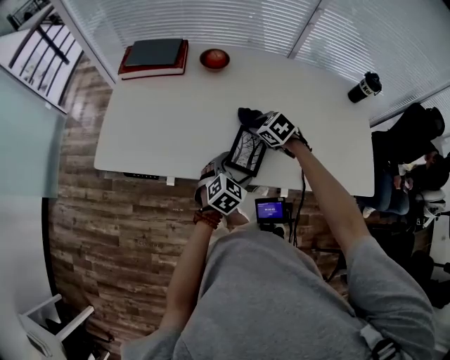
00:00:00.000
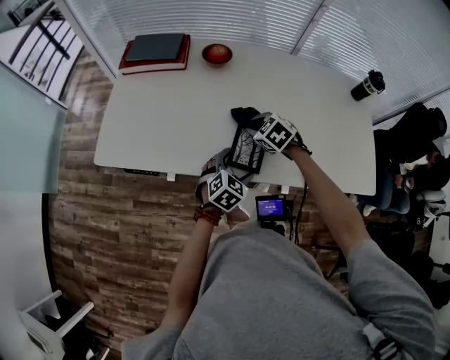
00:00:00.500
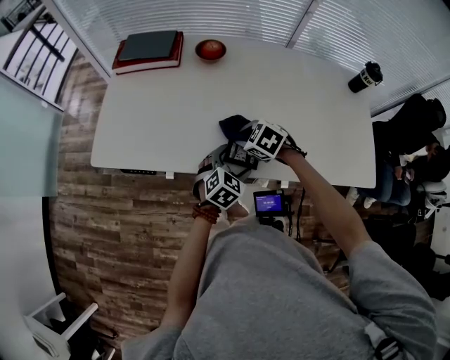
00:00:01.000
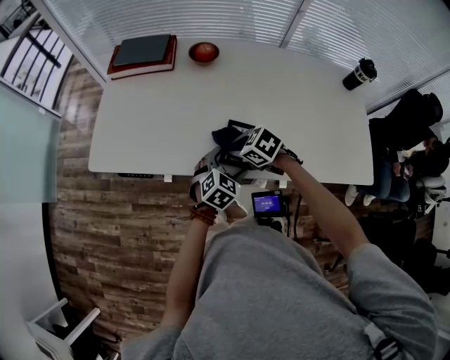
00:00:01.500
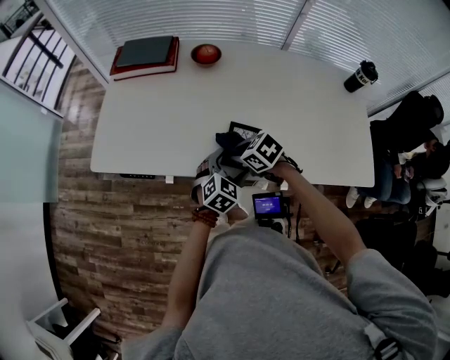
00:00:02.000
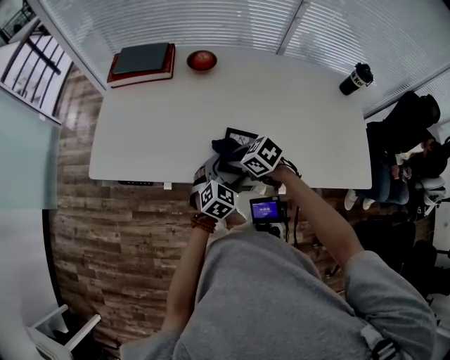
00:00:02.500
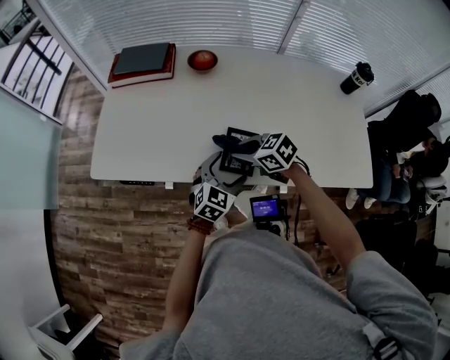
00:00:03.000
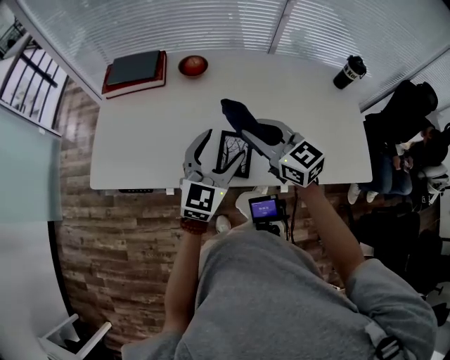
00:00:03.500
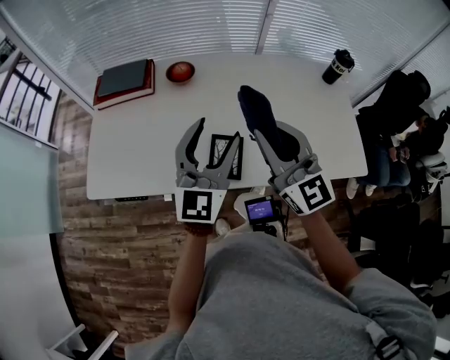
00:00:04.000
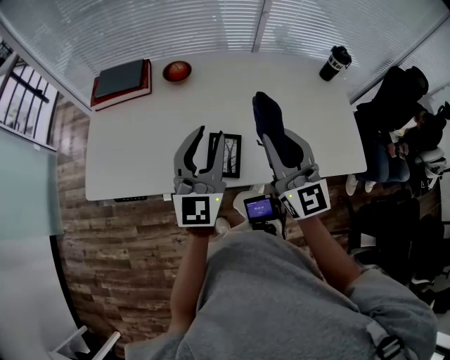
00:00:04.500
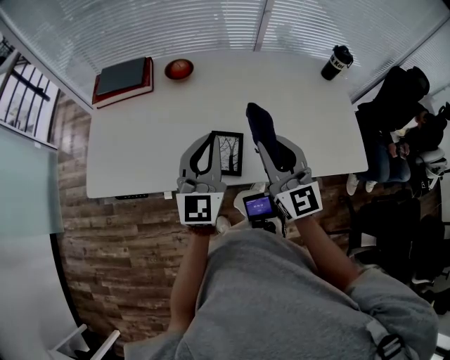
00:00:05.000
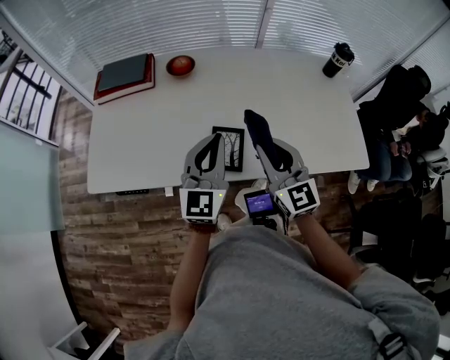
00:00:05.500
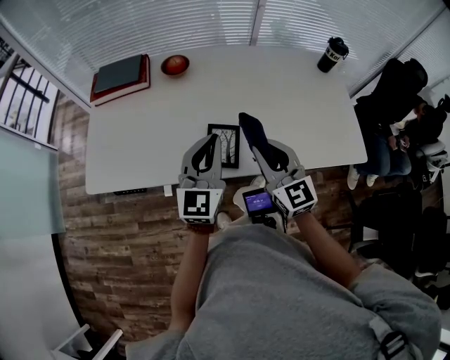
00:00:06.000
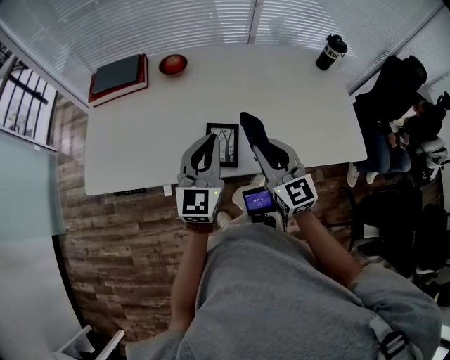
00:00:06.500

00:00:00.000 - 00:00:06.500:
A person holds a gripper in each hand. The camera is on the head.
00:00:00.000 - 00:00:02.000: The right gripper moves backward and to the left, approximately 15 cm.
00:00:02.000 - 00:00:04.500: The right gripper heads upward and to the right, covering approximately 30 cm, and tips its fingers upward by roughly 60 degrees, while the left gripper is displaced upward by about 30 cm, points its fingers roughly 50 degrees further upward, and closes up.
00:00:04.500 - 00:00:06.500: Both grippers move downward, approximately 10 cm.

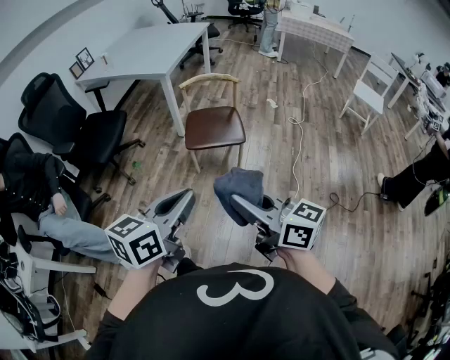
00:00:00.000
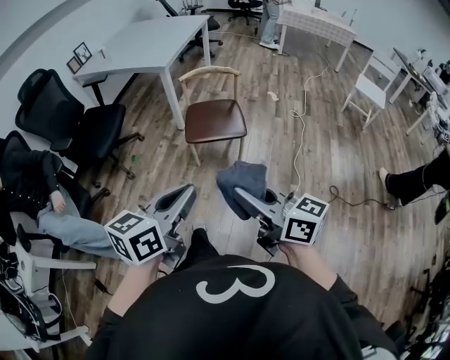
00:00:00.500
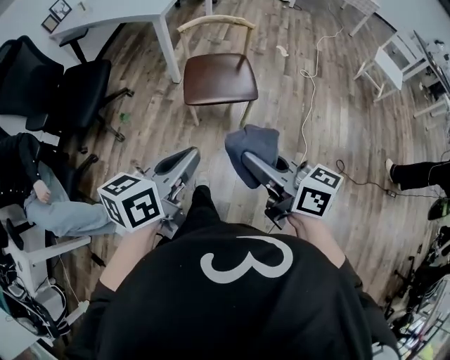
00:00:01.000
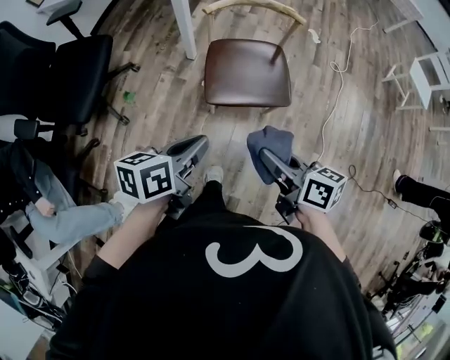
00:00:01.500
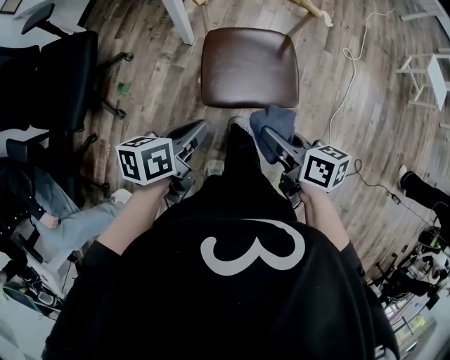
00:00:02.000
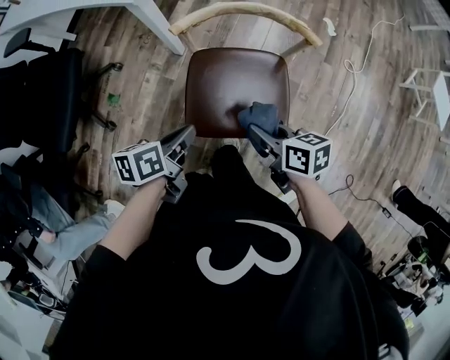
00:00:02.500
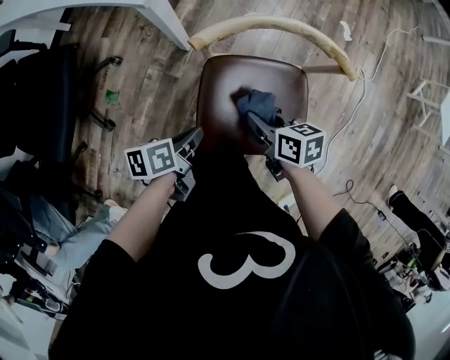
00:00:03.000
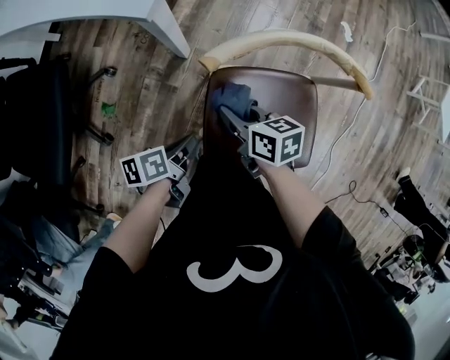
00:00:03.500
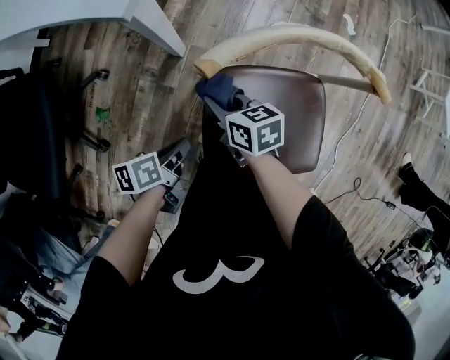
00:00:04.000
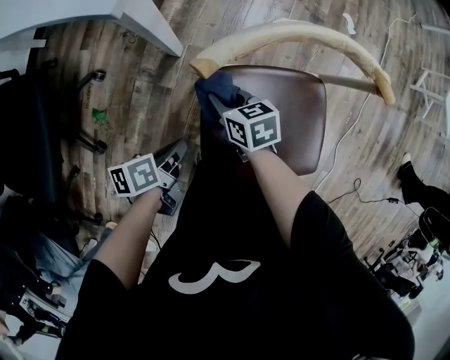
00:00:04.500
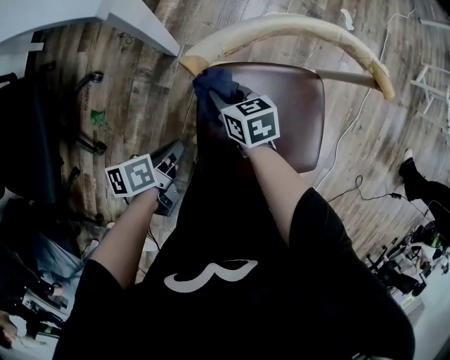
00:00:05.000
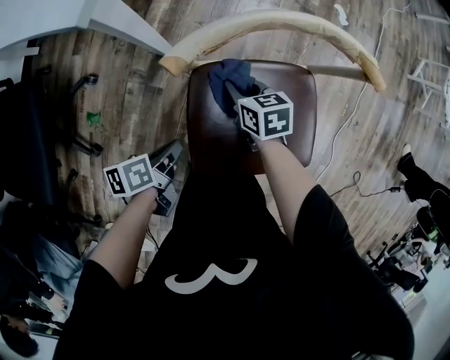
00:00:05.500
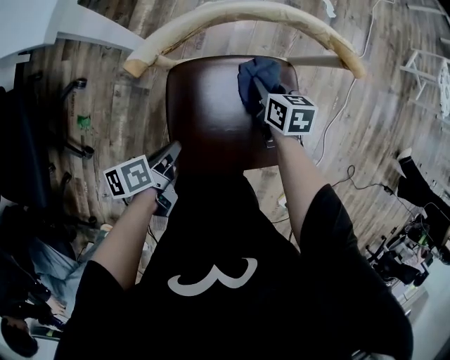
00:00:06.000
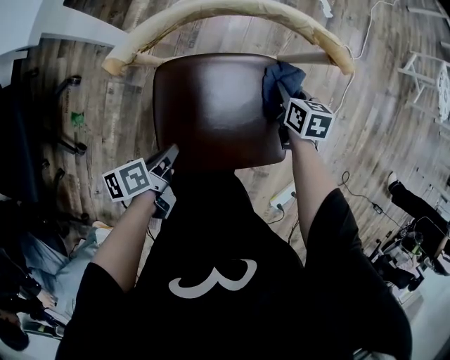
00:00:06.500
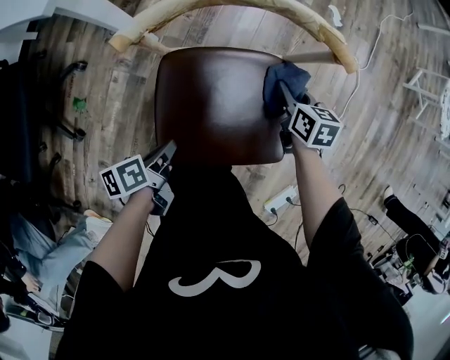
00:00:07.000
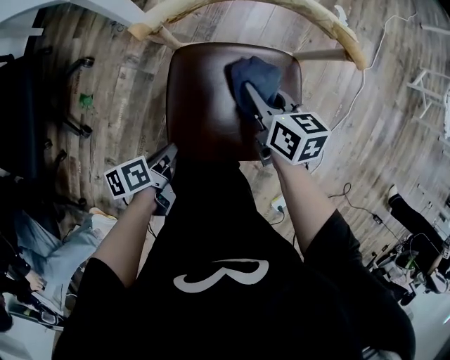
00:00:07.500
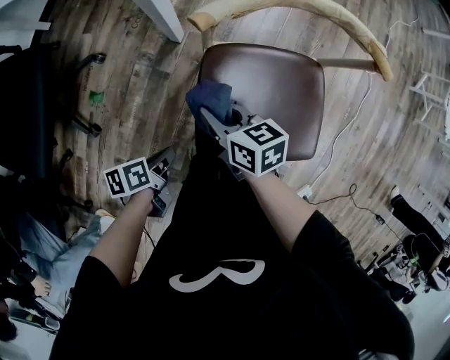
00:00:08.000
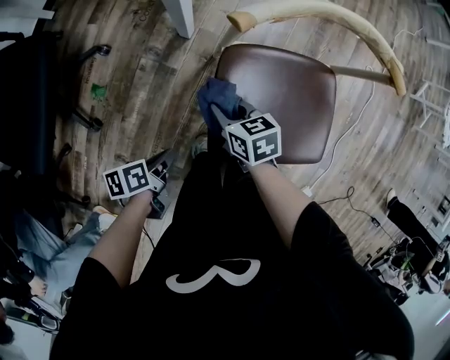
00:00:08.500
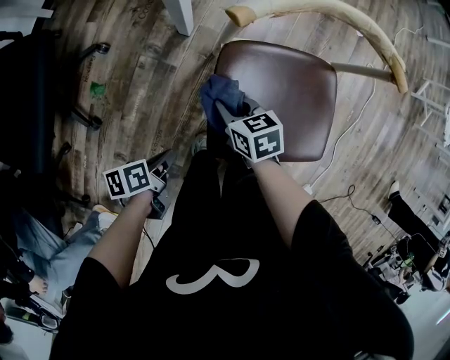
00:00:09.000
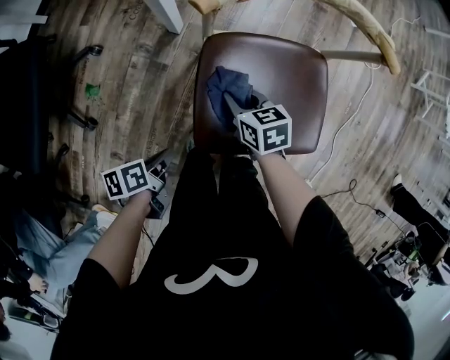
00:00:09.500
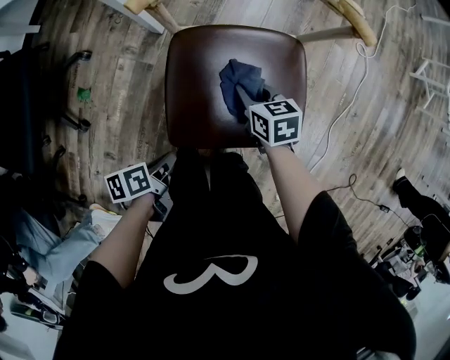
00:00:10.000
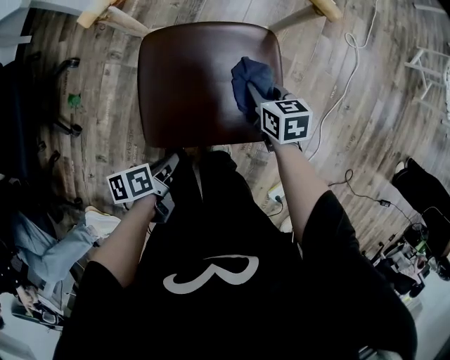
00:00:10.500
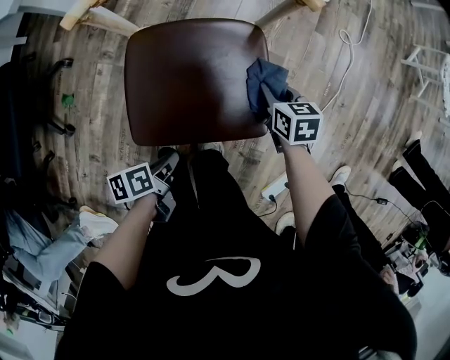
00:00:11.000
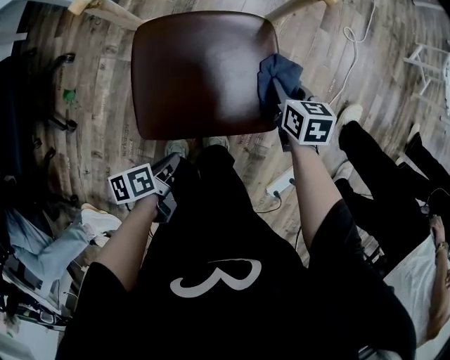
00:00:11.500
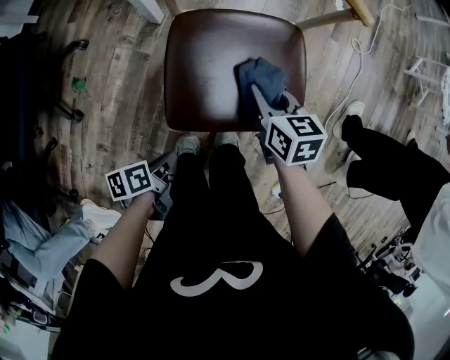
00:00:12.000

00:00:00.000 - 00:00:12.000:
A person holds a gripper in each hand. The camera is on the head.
00:00:00.000 - 00:00:02.000: The right gripper changes place by approximately 50 cm, and points its fingers approximately 30 degrees further downward.
00:00:02.000 - 00:00:04.000: The right gripper ends up about 40 cm from where it was.
00:00:04.000 - 00:00:06.000: The right gripper moves approximately 25 cm, and rotates approximately 20 degrees.
00:00:06.000 - 00:00:08.000: The right gripper moves some 25 cm, and changes its angle by about 30 degrees.
00:00:08.000 - 00:00:10.000: The right gripper moves approximately 20 cm.
00:00:10.000 - 00:00:12.000: The right gripper travels upward by approximately 5 cm.

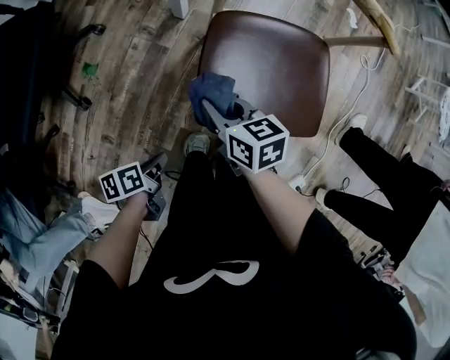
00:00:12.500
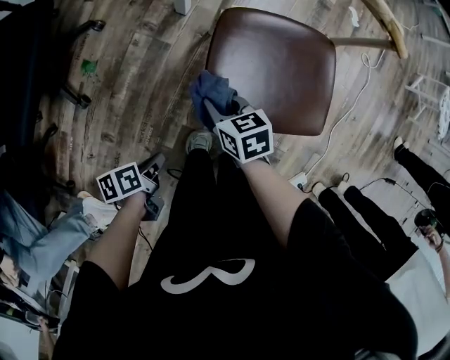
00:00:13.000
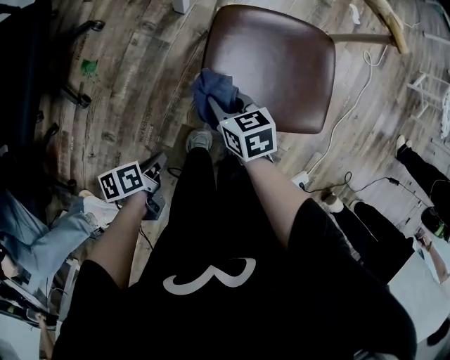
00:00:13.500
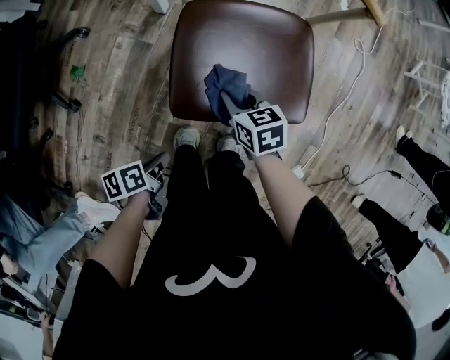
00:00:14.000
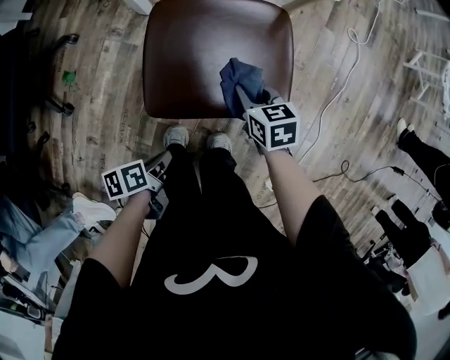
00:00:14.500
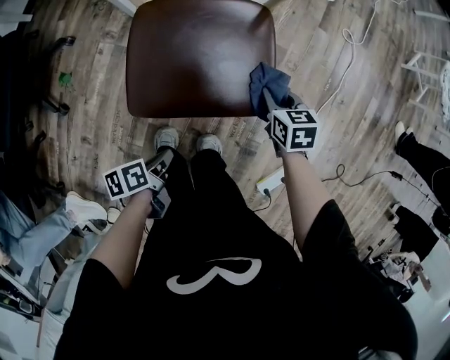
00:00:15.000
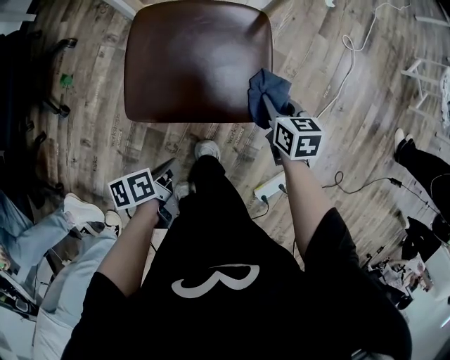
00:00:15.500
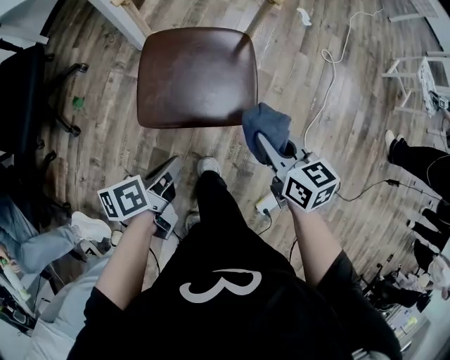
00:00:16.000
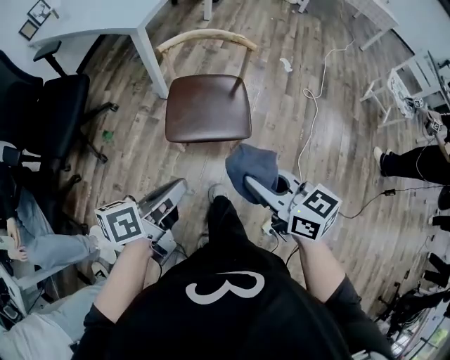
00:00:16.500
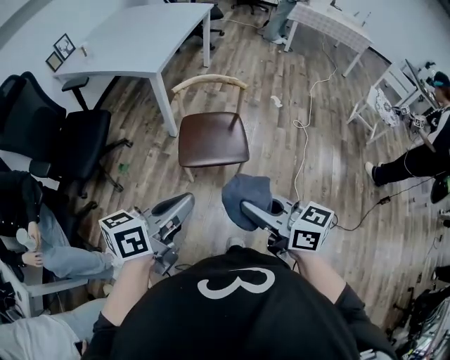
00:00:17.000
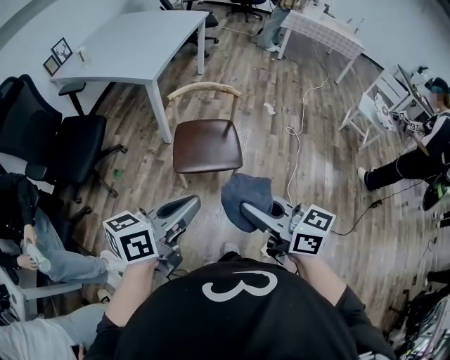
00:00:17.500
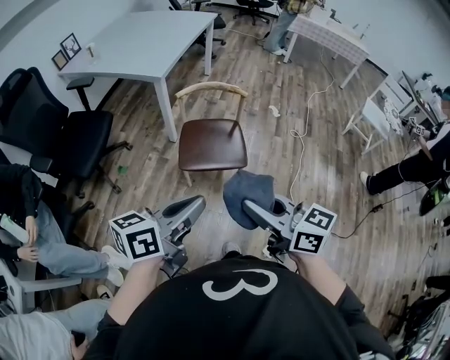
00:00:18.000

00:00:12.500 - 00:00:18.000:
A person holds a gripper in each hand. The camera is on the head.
00:00:12.500 - 00:00:14.500: The right gripper changes place by roughly 25 cm.
00:00:14.500 - 00:00:16.000: The right gripper moves upward, about 20 cm.
00:00:16.000 - 00:00:18.000: The right gripper goes roughly 35 cm upward, and rotates approximately 30 degrees.

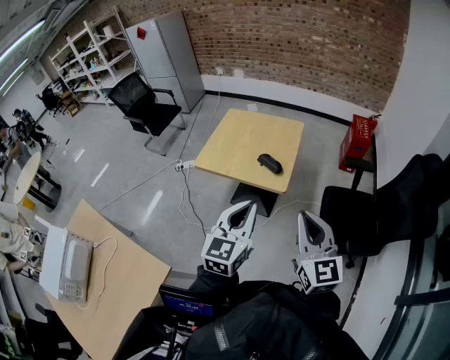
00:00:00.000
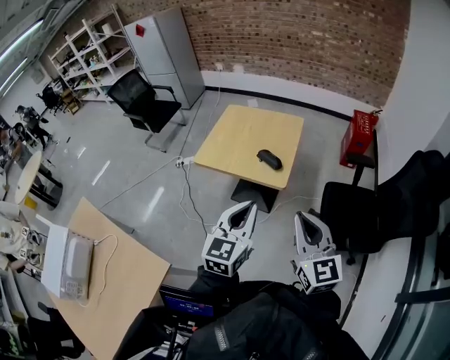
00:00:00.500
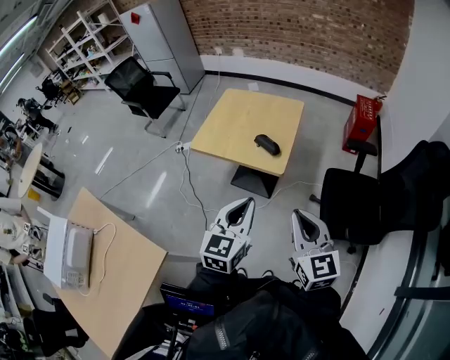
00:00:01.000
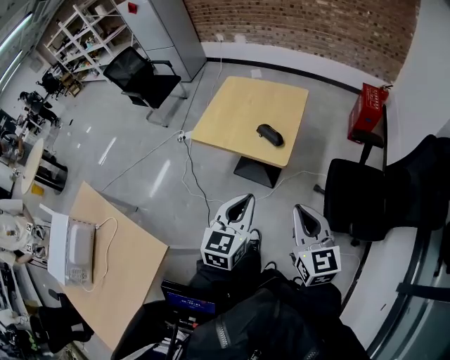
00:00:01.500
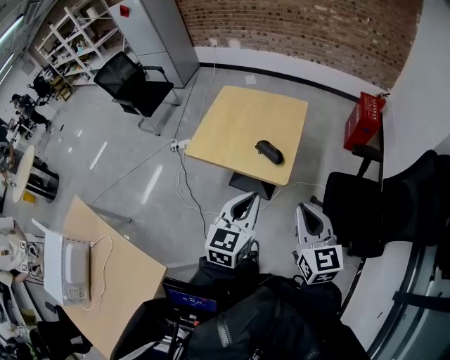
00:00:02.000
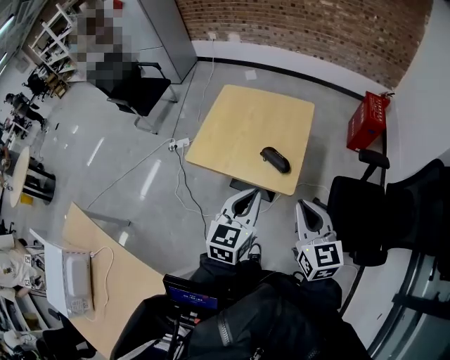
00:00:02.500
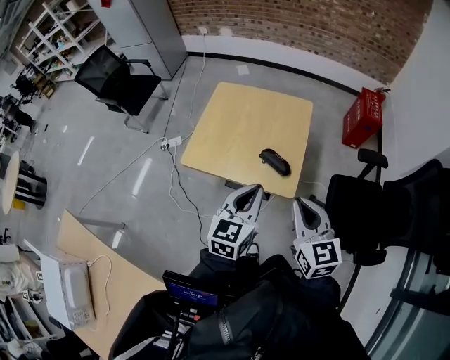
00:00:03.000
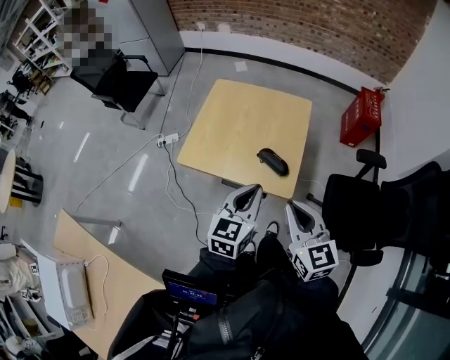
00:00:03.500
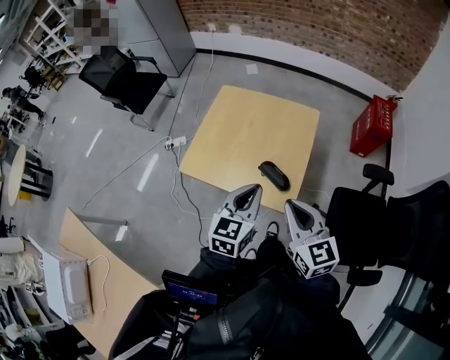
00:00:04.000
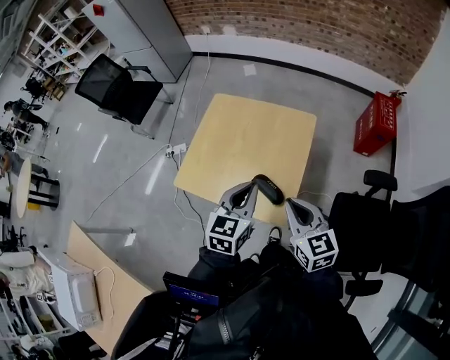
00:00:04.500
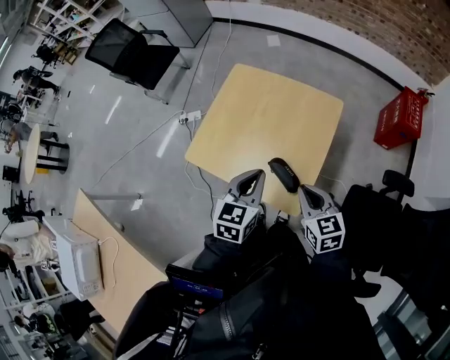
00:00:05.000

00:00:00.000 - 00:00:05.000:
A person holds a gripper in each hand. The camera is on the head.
00:00:00.000 - 00:00:02.500: The left gripper travels forward by about 20 cm. Meanwhile the right gripper goes some 25 cm forward and downward.
00:00:02.500 - 00:00:05.000: The two grippers go some 25 cm forward and downward. The right gripper rotates some 20 degrees.
